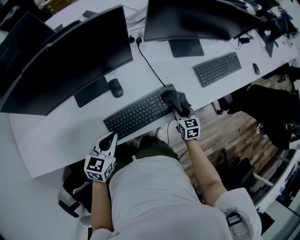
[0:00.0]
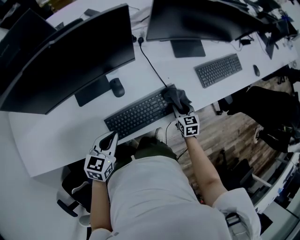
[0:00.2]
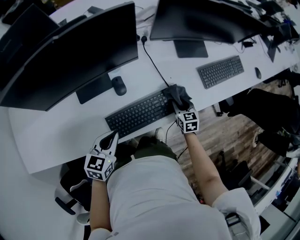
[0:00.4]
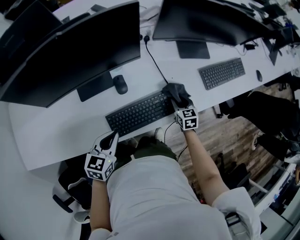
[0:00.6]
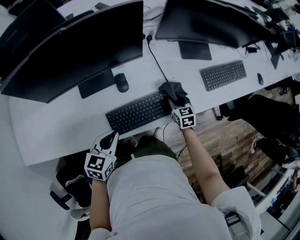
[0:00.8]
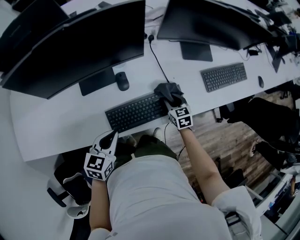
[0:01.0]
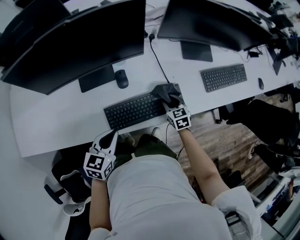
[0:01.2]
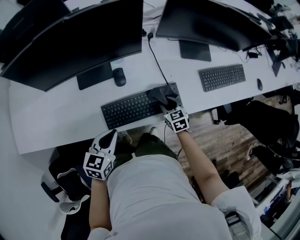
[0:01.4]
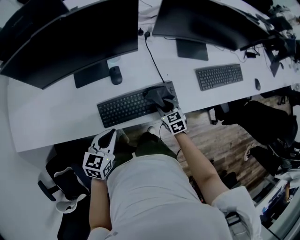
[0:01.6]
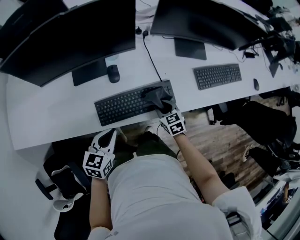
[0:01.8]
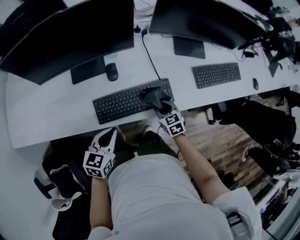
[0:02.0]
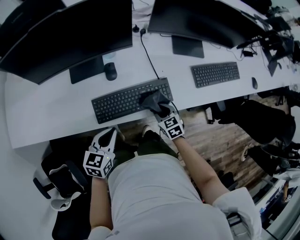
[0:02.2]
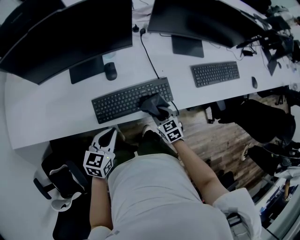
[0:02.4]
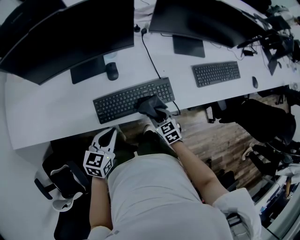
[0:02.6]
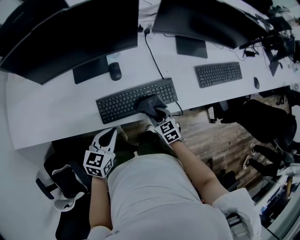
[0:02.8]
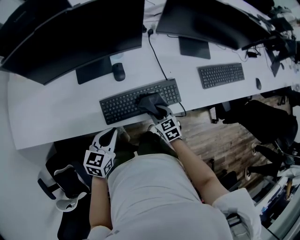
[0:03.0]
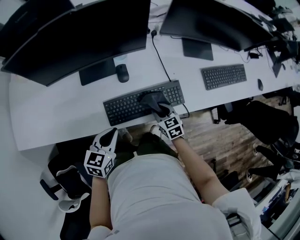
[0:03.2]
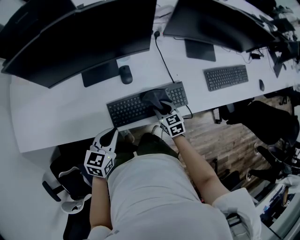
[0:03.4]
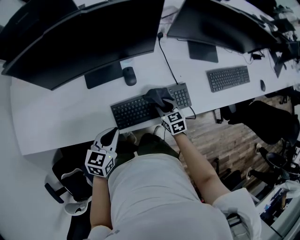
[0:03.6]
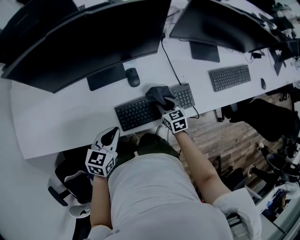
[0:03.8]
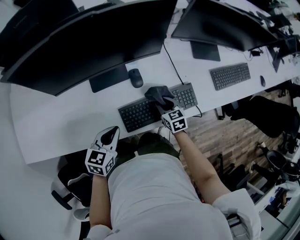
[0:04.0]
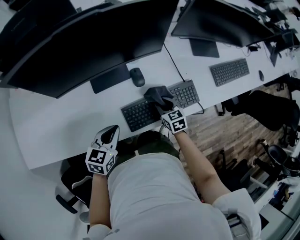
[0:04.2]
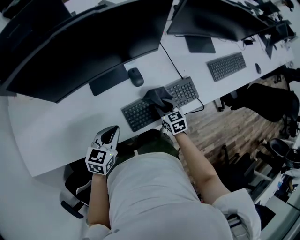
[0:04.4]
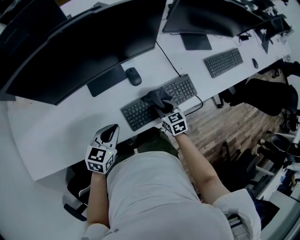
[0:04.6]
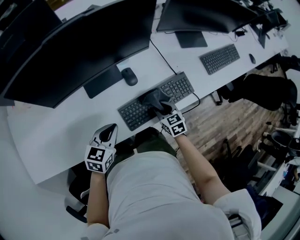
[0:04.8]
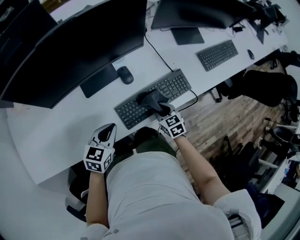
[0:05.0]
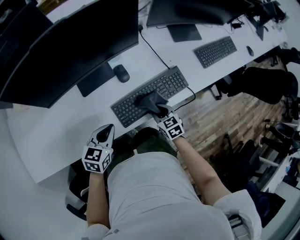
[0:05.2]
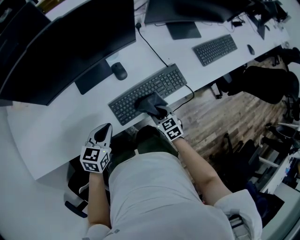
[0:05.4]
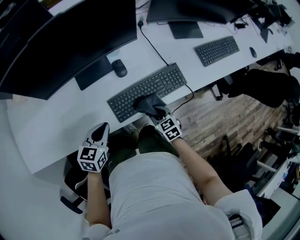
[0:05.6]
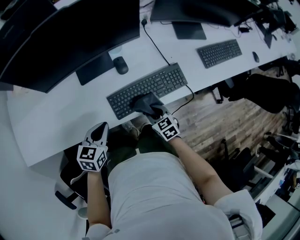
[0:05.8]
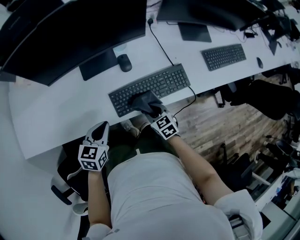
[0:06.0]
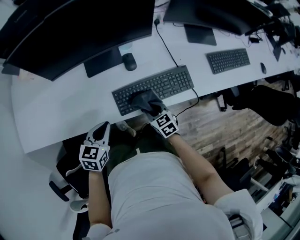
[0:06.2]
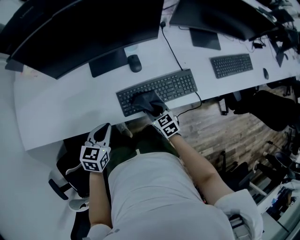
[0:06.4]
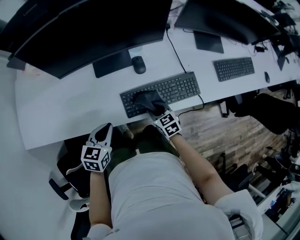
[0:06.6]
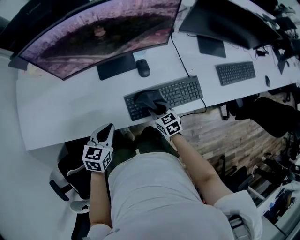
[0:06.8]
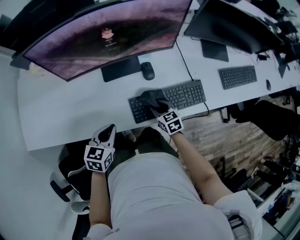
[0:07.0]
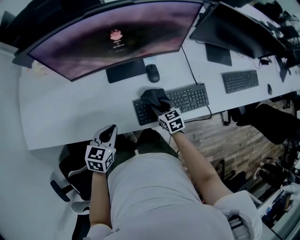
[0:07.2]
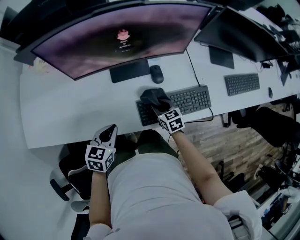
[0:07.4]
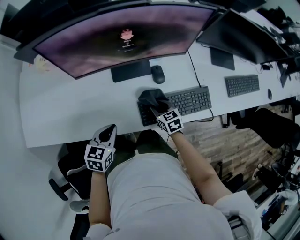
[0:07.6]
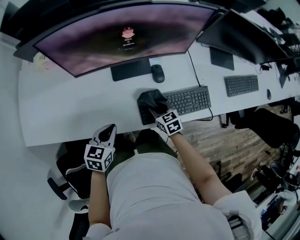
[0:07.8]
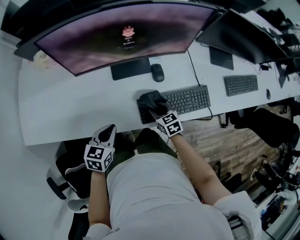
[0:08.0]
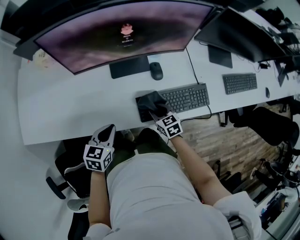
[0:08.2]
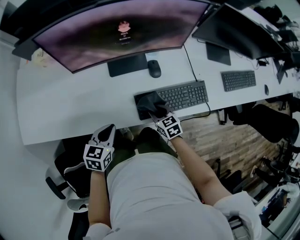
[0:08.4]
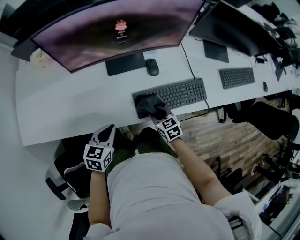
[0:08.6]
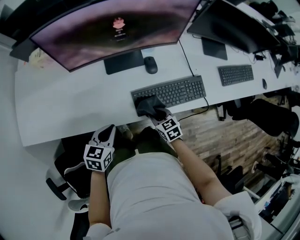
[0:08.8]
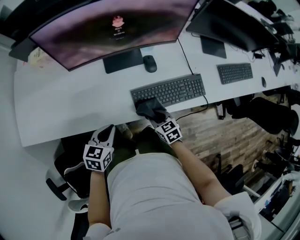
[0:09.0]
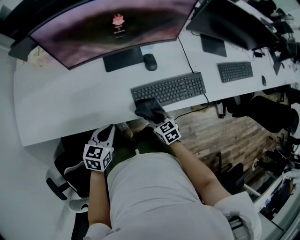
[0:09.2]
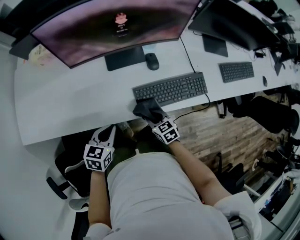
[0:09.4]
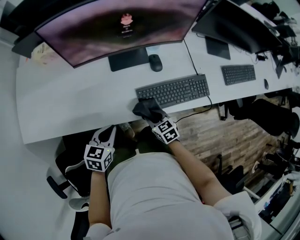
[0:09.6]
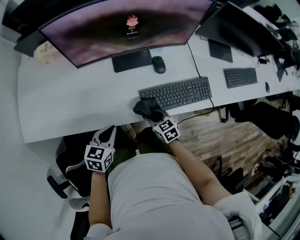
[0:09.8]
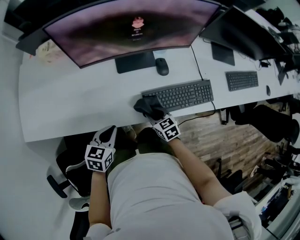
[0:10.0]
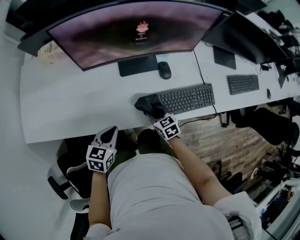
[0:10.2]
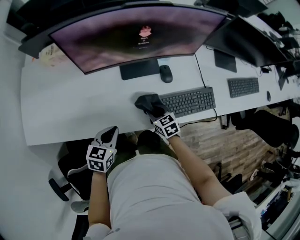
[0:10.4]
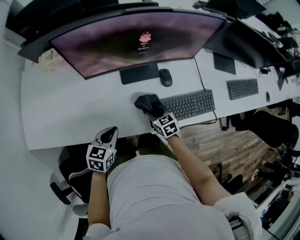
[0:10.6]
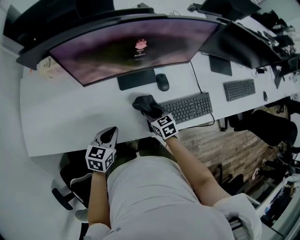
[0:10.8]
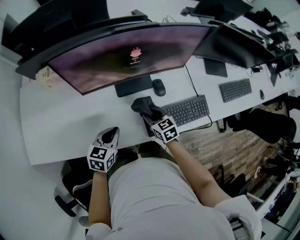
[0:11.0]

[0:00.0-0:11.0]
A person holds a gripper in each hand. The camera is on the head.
0:00.0 to 0:01.6: The left gripper moves backward, roughly 5 cm. The right gripper heads to the left, covering some 5 cm, and changes its angle by some 20 degrees.
0:01.6 to 0:03.2: The right gripper shifts approximately 5 cm to the left.
0:03.2 to 0:04.8: Both grippers move to the left, approximately 10 cm.
0:04.8 to 0:06.2: The grippers both shift backward by some 5 cm.
0:06.2 to 0:07.8: The left gripper shifts some 10 cm to the left, while the right gripper moves forward and to the left, about 10 cm.
0:07.8 to 0:09.4: The left gripper travels backward by approximately 5 cm, while the right gripper goes approximately 10 cm backward.
0:09.4 to 0:11.0: The right gripper heads forward and upward, covering roughly 15 cm; the left gripper is displaced forward by about 10 cm.

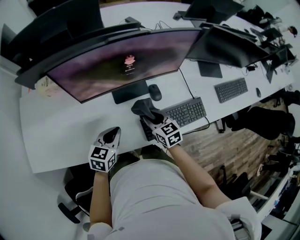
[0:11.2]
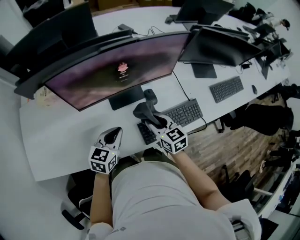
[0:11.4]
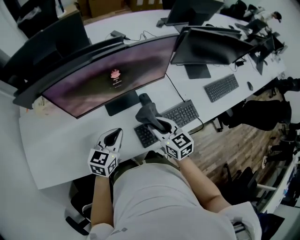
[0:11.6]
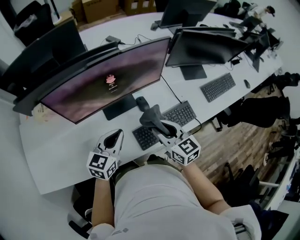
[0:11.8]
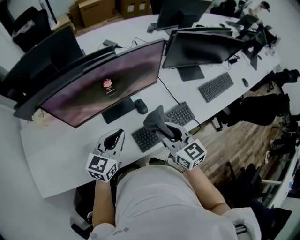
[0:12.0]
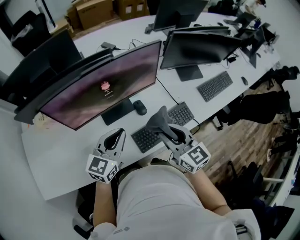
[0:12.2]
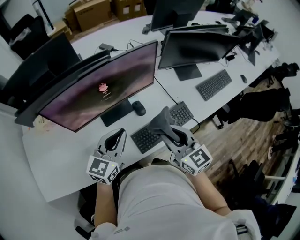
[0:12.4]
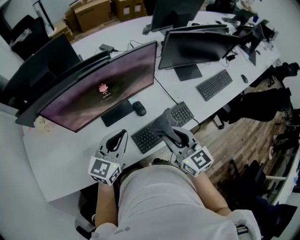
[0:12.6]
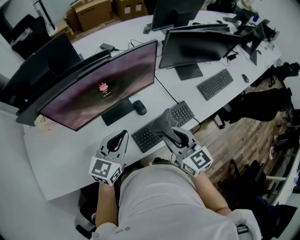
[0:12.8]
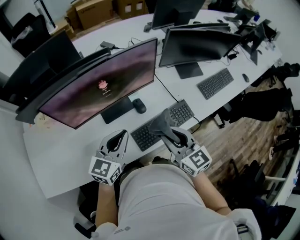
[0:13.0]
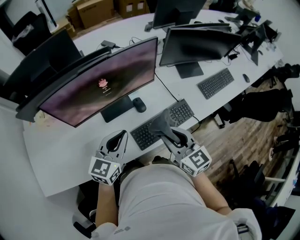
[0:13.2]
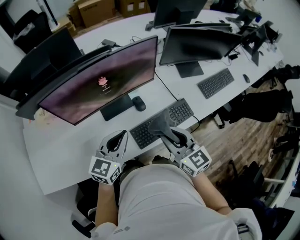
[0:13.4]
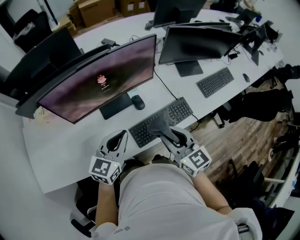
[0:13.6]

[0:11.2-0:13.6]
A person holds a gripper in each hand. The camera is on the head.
0:11.2 to 0:12.4: Both grippers move upward and to the right, some 20 cm. The left gripper swivels roughly 30 degrees; the right gripper changes its angle by roughly 20 degrees.
0:12.4 to 0:13.6: The grippers stay close to where they were, moving slightly.

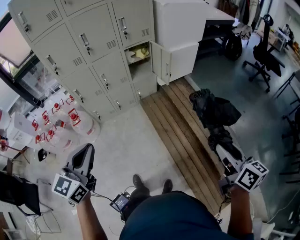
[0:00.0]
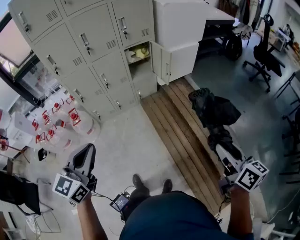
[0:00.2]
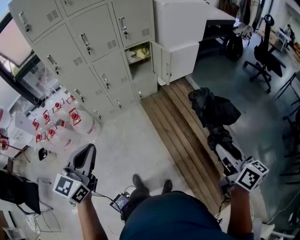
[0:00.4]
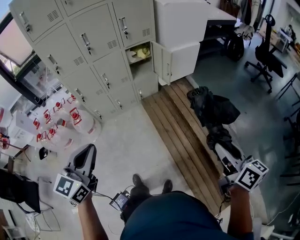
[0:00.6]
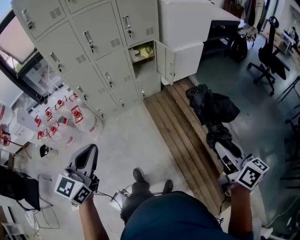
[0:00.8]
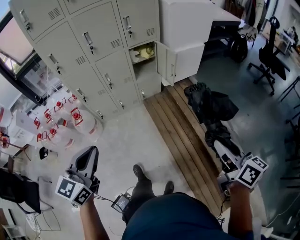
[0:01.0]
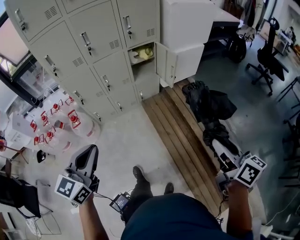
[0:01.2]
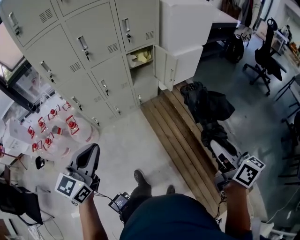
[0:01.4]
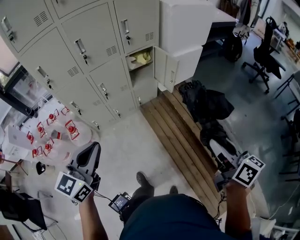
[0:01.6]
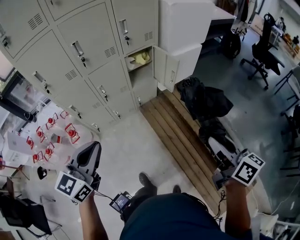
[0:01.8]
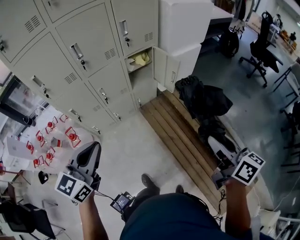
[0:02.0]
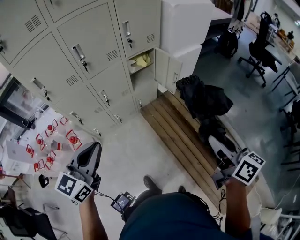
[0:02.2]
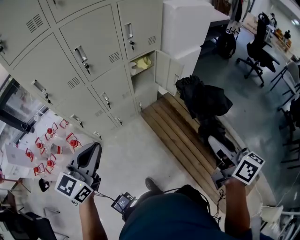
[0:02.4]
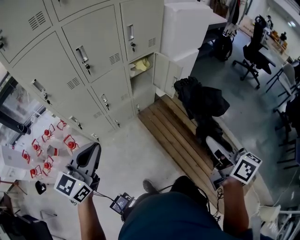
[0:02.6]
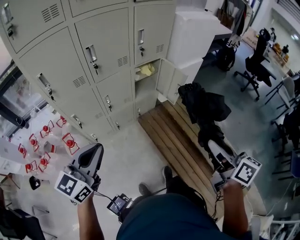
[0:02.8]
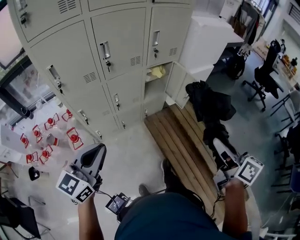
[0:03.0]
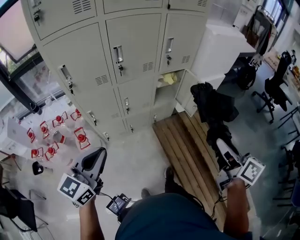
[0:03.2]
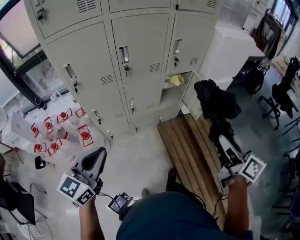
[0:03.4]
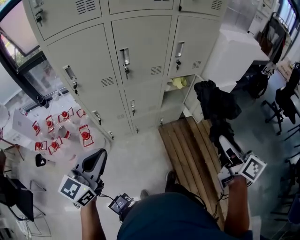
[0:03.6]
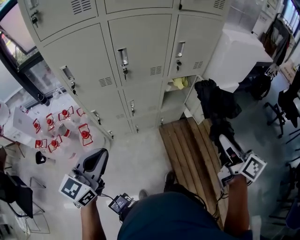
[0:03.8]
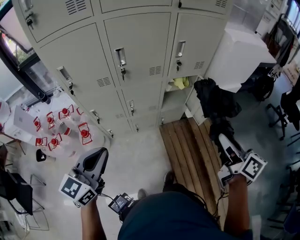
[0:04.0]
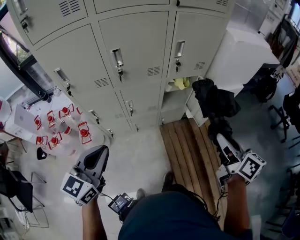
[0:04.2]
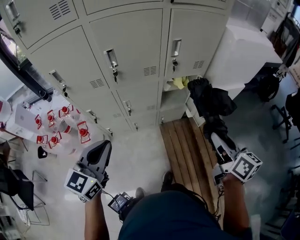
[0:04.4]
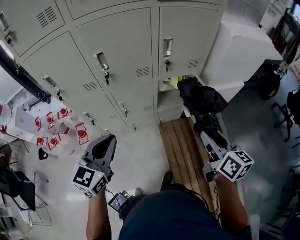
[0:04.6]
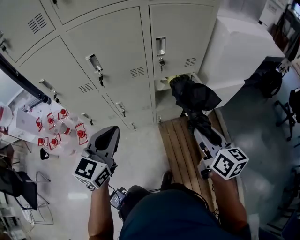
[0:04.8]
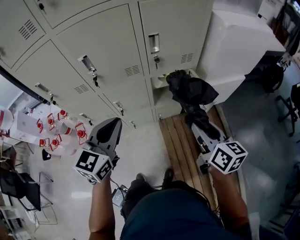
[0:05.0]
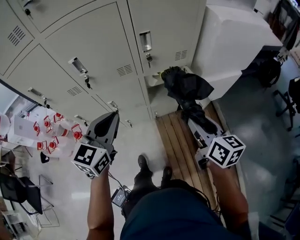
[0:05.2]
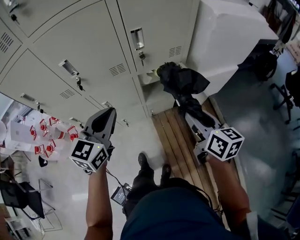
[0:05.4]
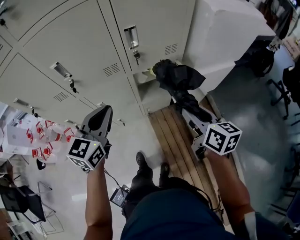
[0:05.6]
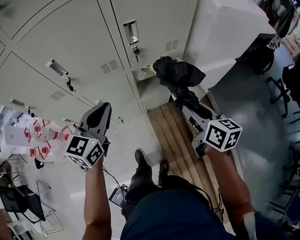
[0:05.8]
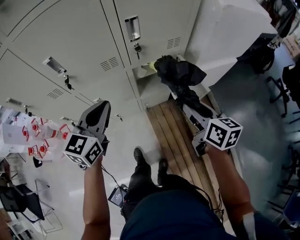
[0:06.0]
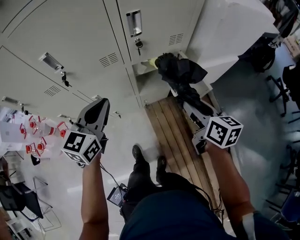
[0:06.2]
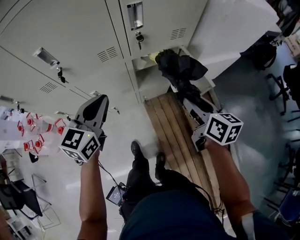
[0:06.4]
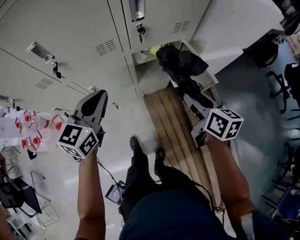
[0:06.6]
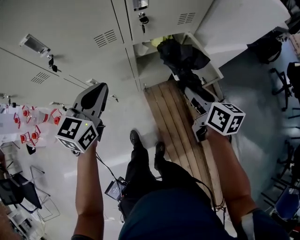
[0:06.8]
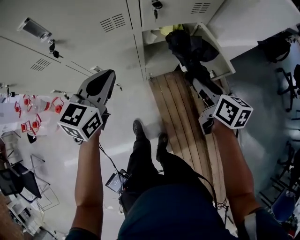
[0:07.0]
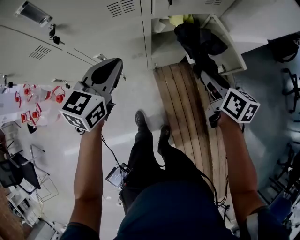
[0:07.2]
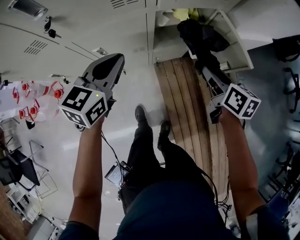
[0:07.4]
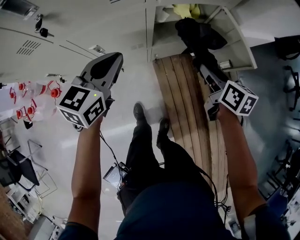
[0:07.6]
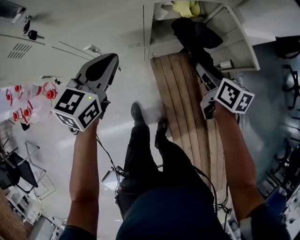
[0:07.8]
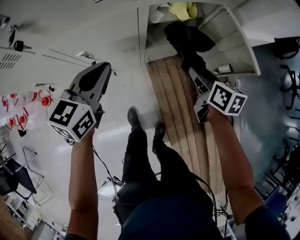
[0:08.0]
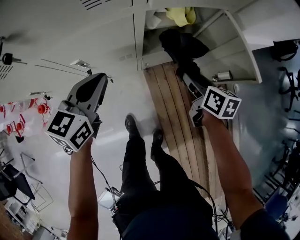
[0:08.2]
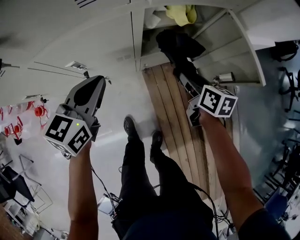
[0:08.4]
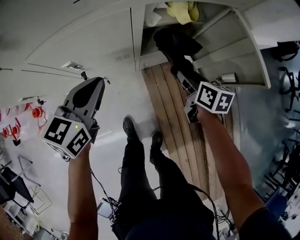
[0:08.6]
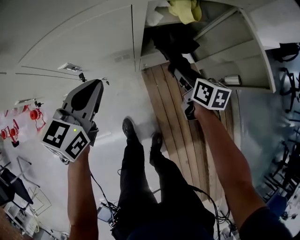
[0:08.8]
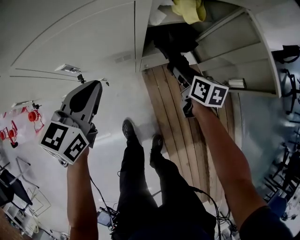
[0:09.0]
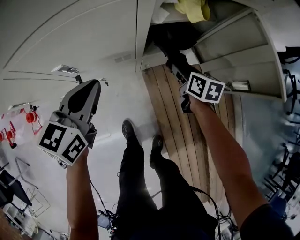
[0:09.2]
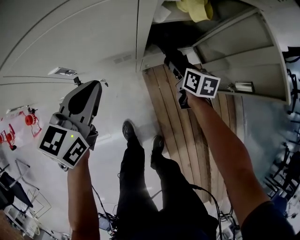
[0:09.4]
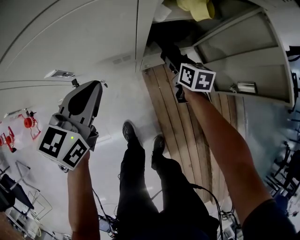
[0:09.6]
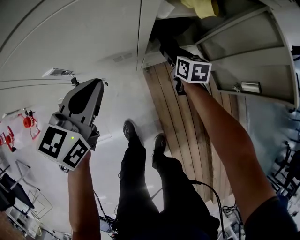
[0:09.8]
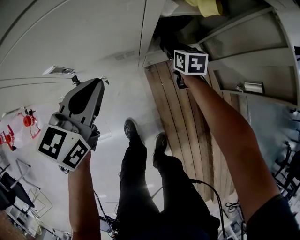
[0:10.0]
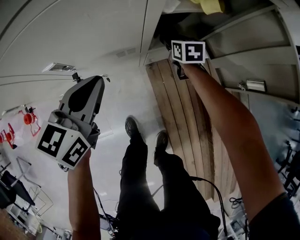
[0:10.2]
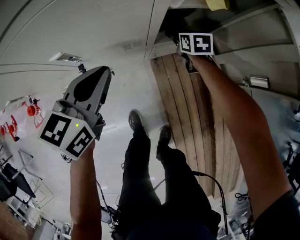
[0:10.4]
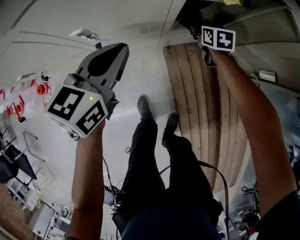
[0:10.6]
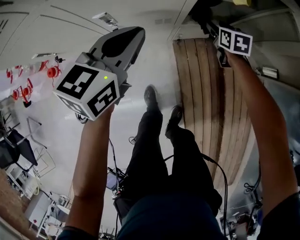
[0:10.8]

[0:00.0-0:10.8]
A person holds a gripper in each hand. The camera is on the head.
0:00.0 to 0:01.6: The left gripper is displaced forward by about 15 cm; the right gripper moves forward and to the left, some 20 cm.
0:01.6 to 0:03.0: Both grippers travel together to the left and forward, about 20 cm.
0:03.0 to 0:04.6: The left gripper goes approximately 25 cm forward and to the right, and turns by about 20 degrees; the right gripper moves forward, some 30 cm.
0:04.6 to 0:06.2: Both grippers move forward and downward, about 20 cm.
0:06.2 to 0:07.8: The grippers both shift downward by approximately 20 cm.
0:07.8 to 0:09.2: The right gripper travels downward and forward by approximately 25 cm. Meanwhile the left gripper travels downward by about 15 cm.
0:09.2 to 0:10.8: The right gripper moves forward, some 5 cm, and changes its angle by approximately 20 degrees.
